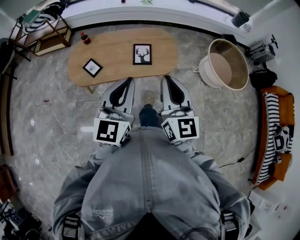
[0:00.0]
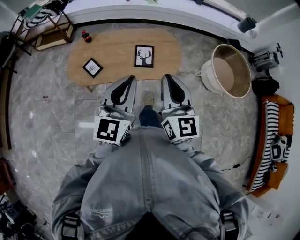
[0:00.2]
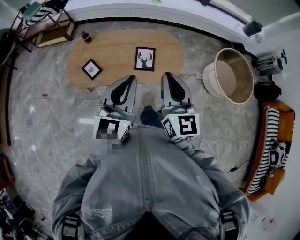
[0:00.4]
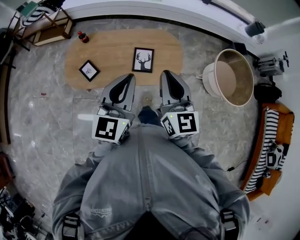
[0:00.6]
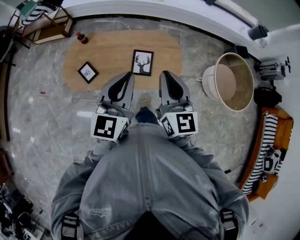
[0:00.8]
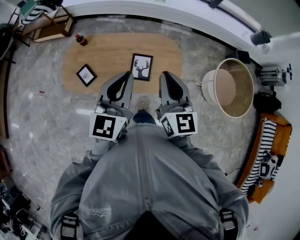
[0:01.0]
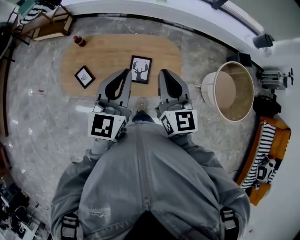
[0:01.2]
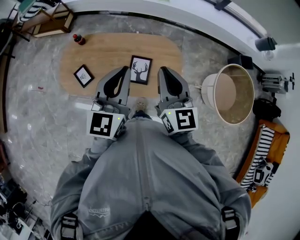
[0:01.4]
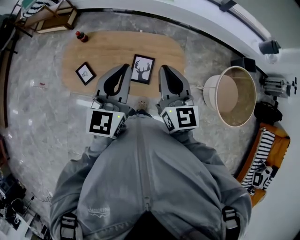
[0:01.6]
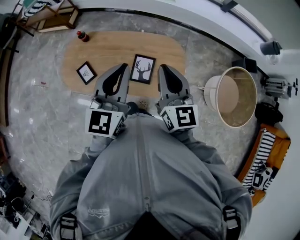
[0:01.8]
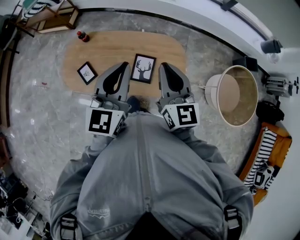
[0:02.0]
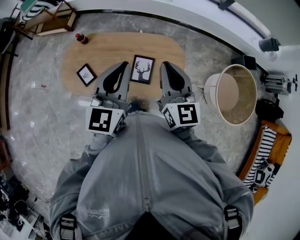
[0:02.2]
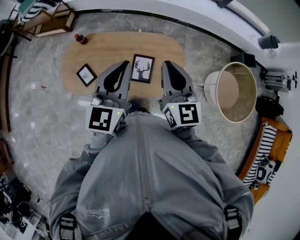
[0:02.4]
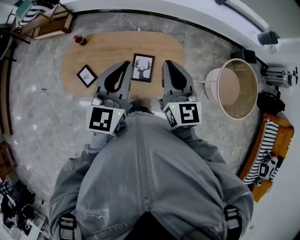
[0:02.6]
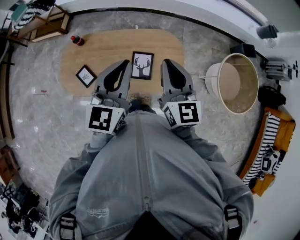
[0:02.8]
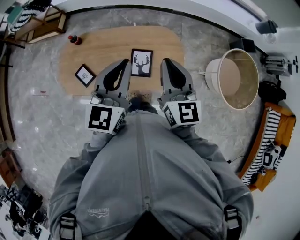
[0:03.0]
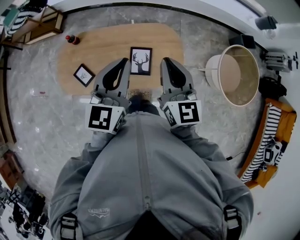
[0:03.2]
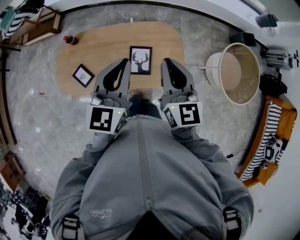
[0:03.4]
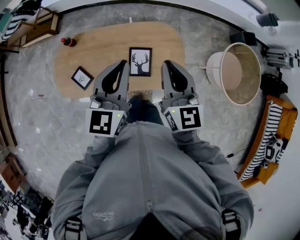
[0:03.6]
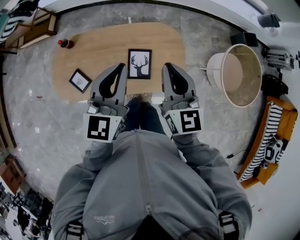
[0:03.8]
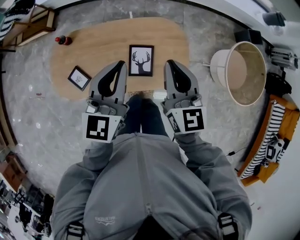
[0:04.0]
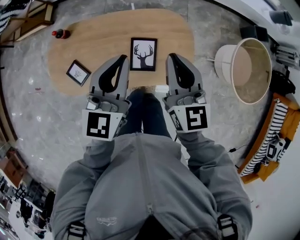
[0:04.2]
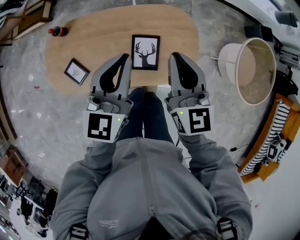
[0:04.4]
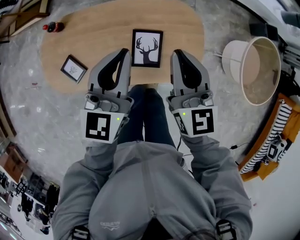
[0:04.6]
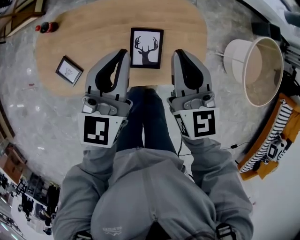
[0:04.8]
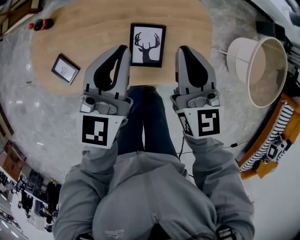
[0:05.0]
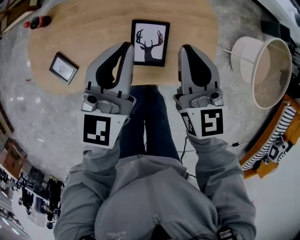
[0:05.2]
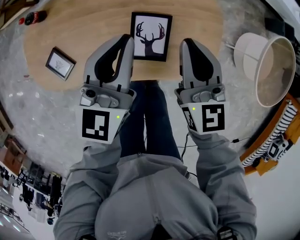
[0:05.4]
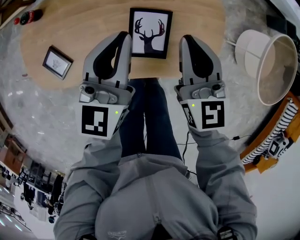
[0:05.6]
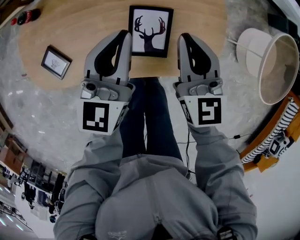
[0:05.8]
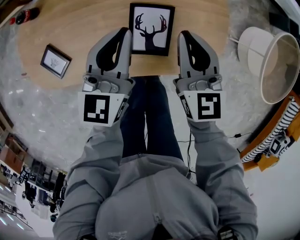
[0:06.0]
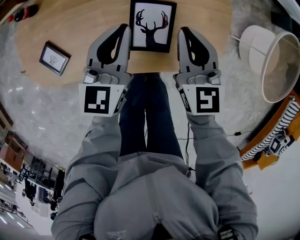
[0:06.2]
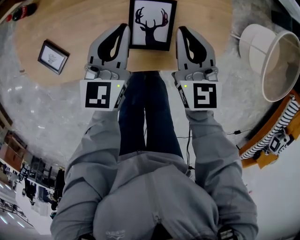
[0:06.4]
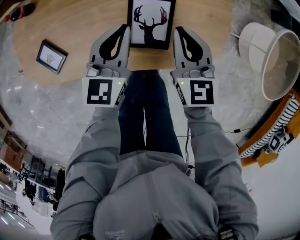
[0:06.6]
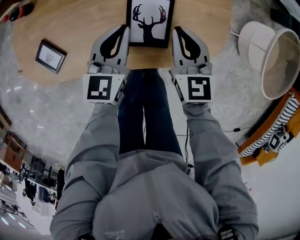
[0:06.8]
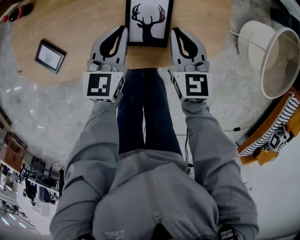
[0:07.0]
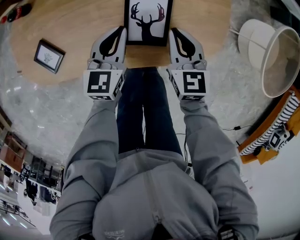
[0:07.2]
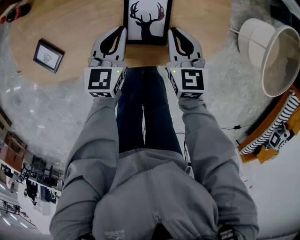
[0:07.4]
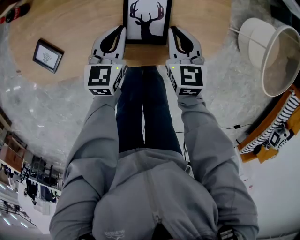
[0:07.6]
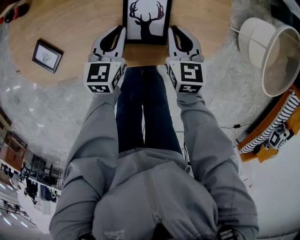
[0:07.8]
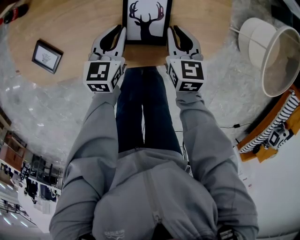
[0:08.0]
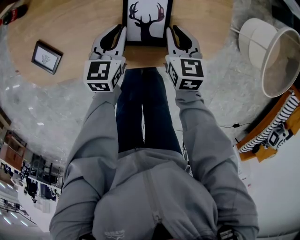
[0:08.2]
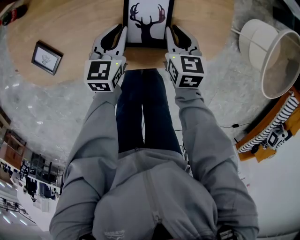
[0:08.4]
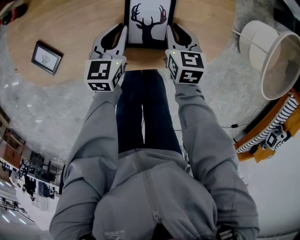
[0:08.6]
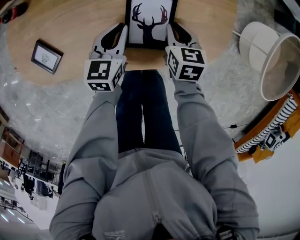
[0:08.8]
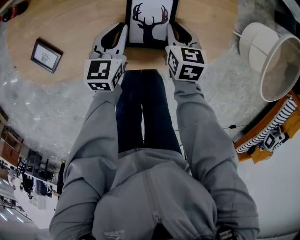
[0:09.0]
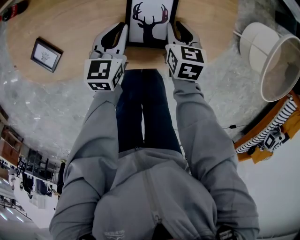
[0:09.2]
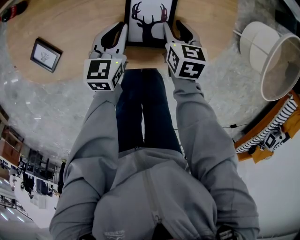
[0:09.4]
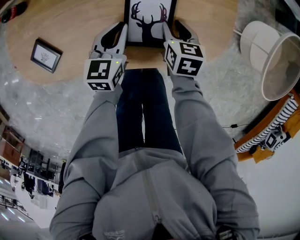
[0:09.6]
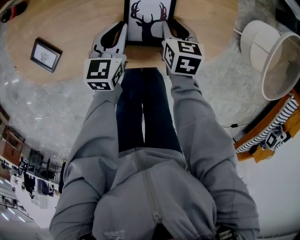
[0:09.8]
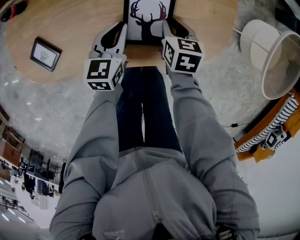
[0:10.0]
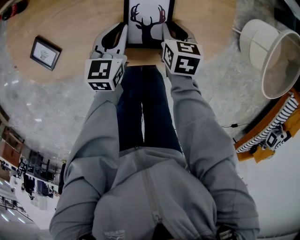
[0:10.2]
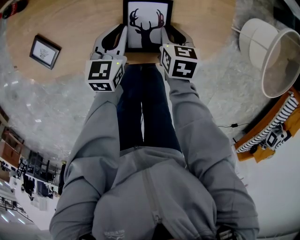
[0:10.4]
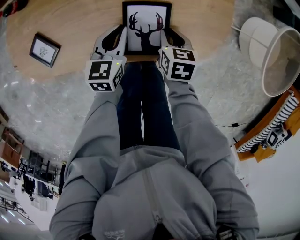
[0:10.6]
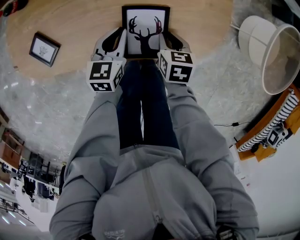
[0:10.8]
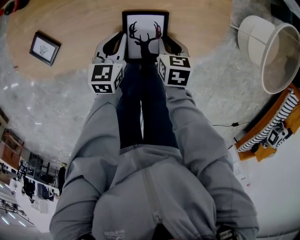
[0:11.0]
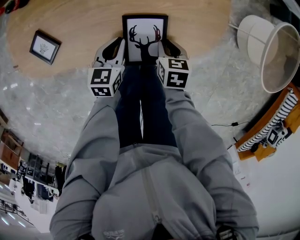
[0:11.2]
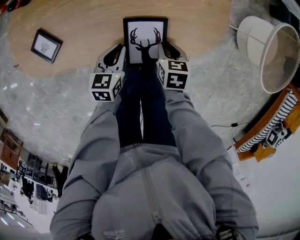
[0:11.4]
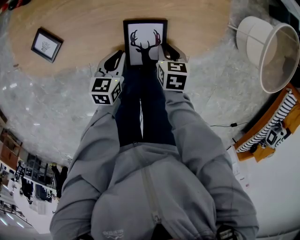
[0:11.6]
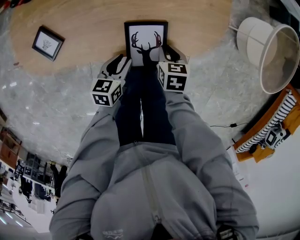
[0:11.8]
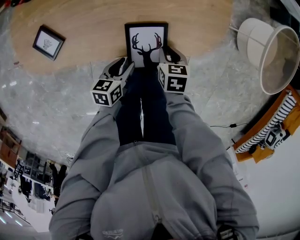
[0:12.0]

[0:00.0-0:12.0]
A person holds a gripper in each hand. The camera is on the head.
0:00.0 to 0:01.6: The pair of grippers is taken forward, about 40 cm.
0:01.6 to 0:03.0: The grippers make only small movements.
0:03.0 to 0:04.4: Both grippers travel together downward and forward, about 20 cm.
0:04.4 to 0:06.0: Both grippers move downward, some 25 cm.
0:06.0 to 0:07.6: The grippers both shift downward by approximately 15 cm.
0:07.6 to 0:09.0: The right gripper goes about 10 cm downward.
0:09.0 to 0:10.4: The right gripper changes place by approximately 5 cm.
0:10.4 to 0:12.0: The right gripper travels backward by roughly 10 cm; the left gripper shifts approximately 20 cm backward, swivels some 30 degrees, and opens up.

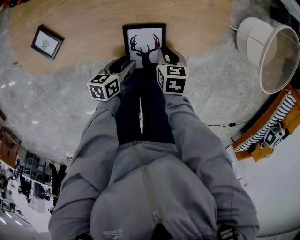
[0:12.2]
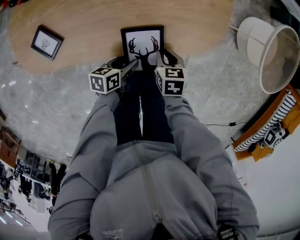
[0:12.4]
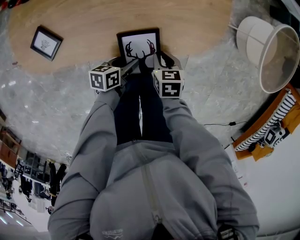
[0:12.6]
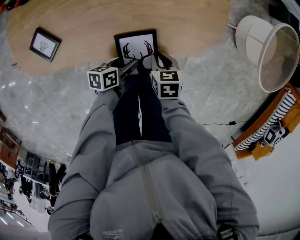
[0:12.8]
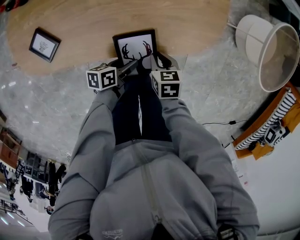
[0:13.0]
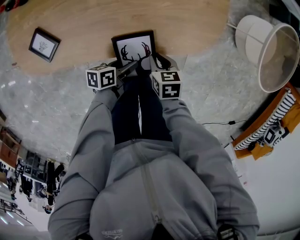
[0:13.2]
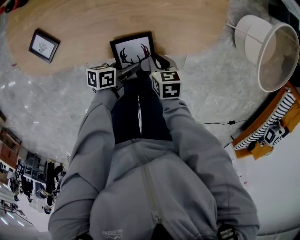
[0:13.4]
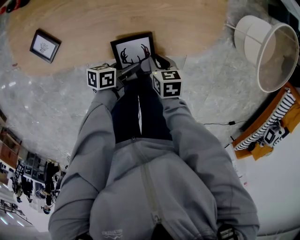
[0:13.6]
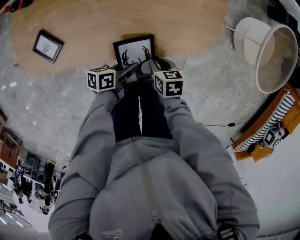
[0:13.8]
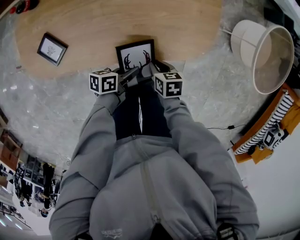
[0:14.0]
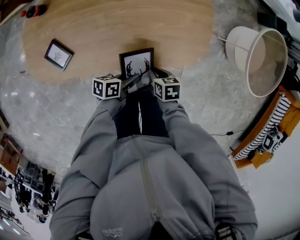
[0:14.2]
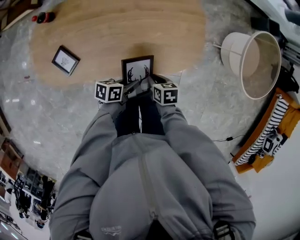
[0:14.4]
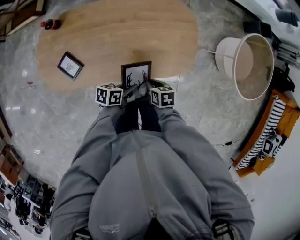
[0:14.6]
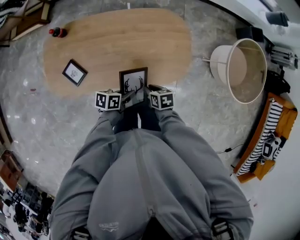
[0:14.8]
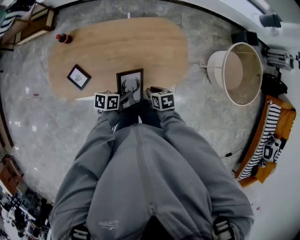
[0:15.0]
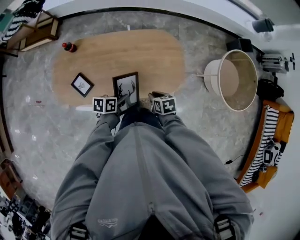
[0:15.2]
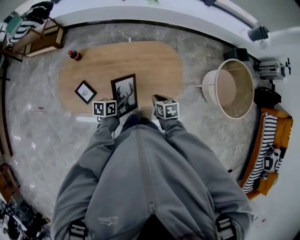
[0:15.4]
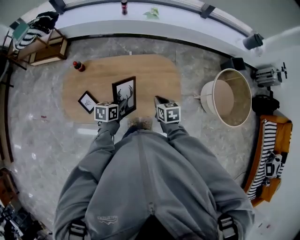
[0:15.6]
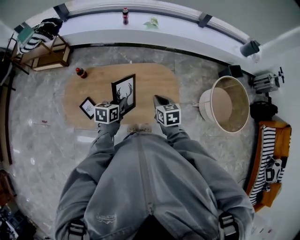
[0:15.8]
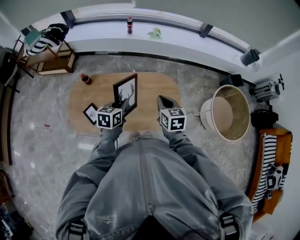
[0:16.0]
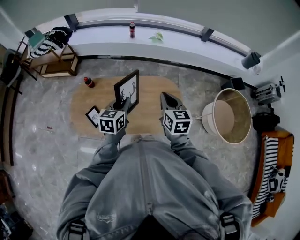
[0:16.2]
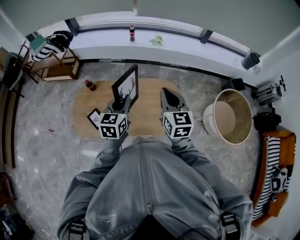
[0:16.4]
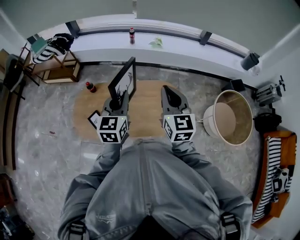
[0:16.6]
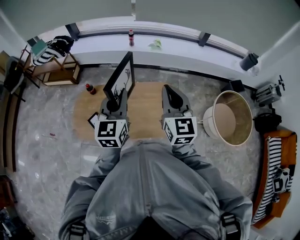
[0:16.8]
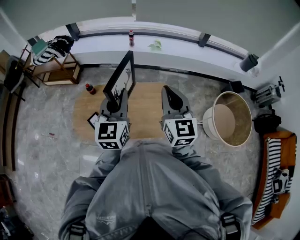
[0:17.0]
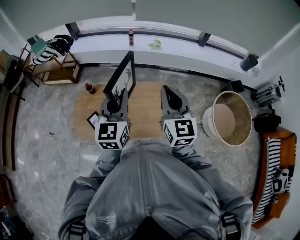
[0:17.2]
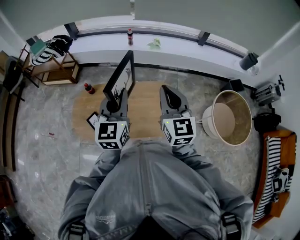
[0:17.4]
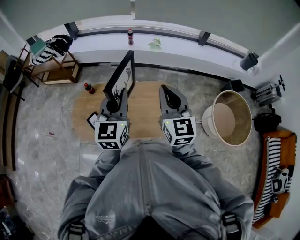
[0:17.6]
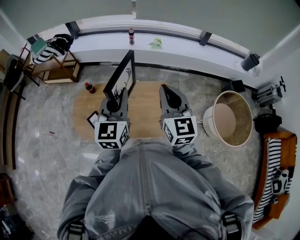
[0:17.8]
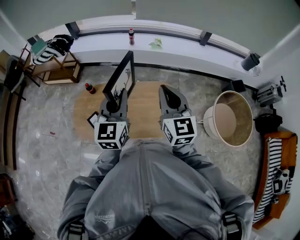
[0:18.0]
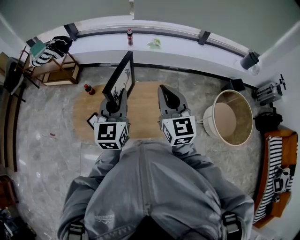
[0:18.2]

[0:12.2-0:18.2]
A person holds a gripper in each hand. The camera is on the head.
0:12.2 to 0:13.8: The left gripper ends up about 5 cm from where it was, changes its angle by some 20 degrees, and closes.
0:13.8 to 0:15.2: The two grippers go approximately 30 cm upward.
0:15.2 to 0:16.6: Both grippers travel together upward, about 40 cm. The left gripper changes its angle by about 70 degrees; the right gripper points its fingers approximately 50 degrees further upward.
0:16.6 to 0:18.2: The left gripper heads upward, covering roughly 5 cm.

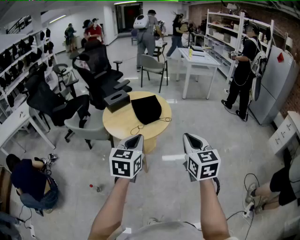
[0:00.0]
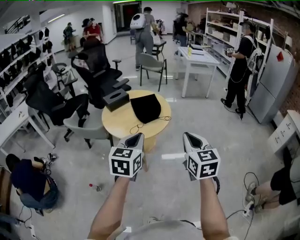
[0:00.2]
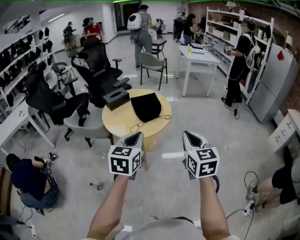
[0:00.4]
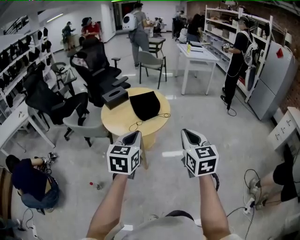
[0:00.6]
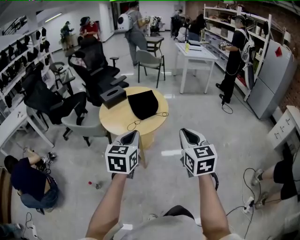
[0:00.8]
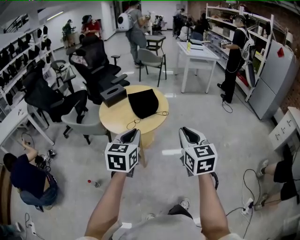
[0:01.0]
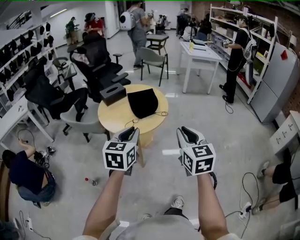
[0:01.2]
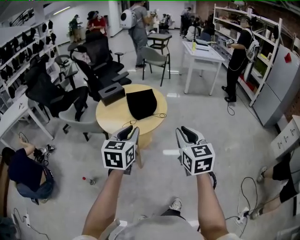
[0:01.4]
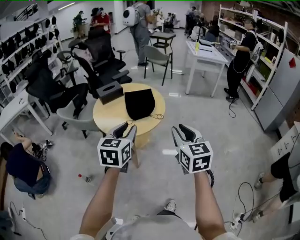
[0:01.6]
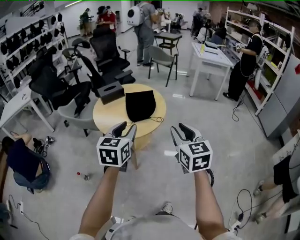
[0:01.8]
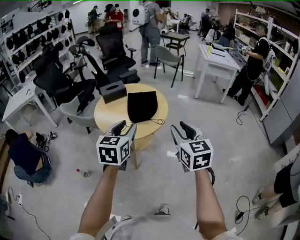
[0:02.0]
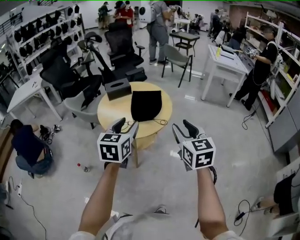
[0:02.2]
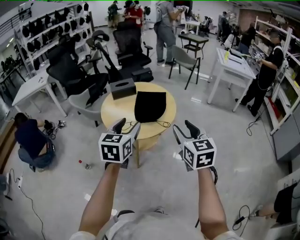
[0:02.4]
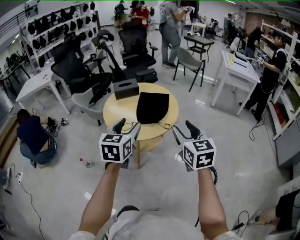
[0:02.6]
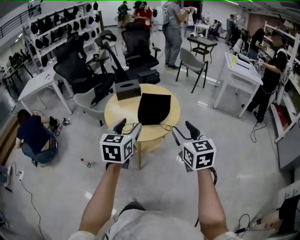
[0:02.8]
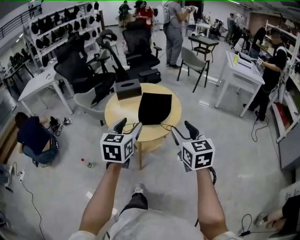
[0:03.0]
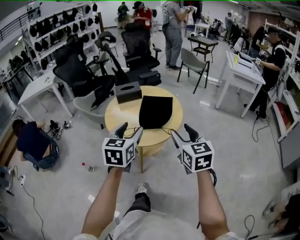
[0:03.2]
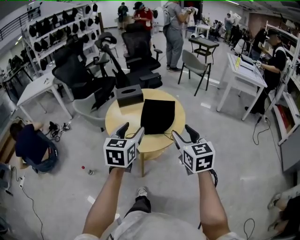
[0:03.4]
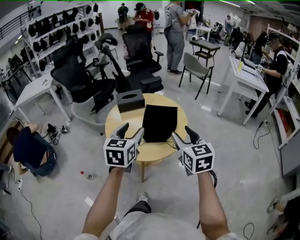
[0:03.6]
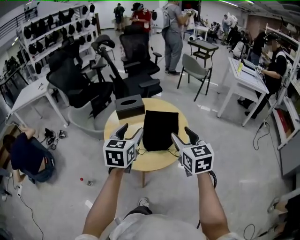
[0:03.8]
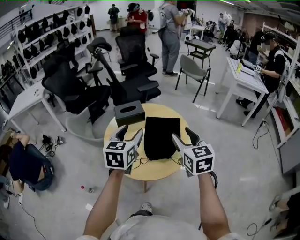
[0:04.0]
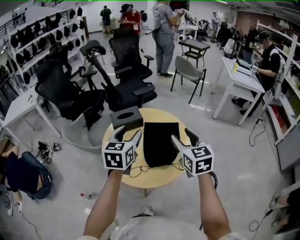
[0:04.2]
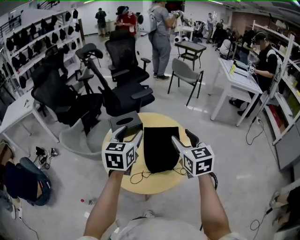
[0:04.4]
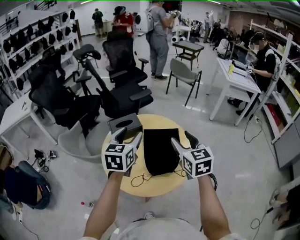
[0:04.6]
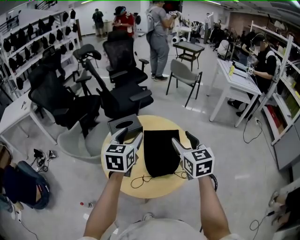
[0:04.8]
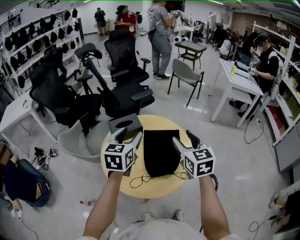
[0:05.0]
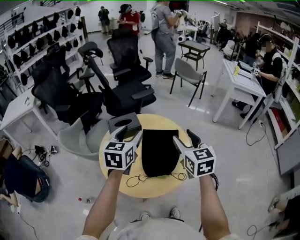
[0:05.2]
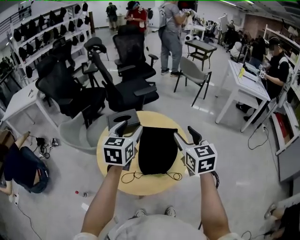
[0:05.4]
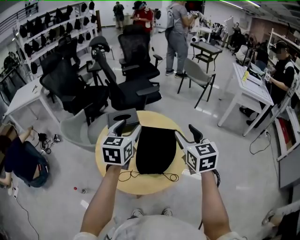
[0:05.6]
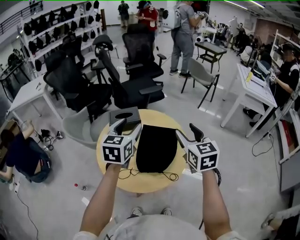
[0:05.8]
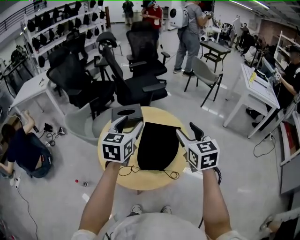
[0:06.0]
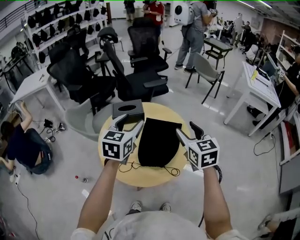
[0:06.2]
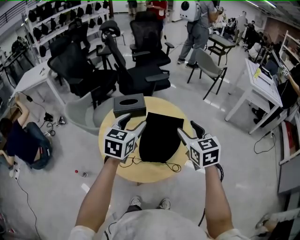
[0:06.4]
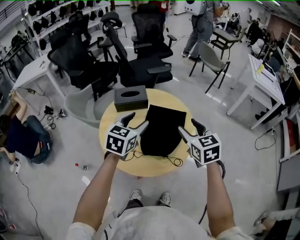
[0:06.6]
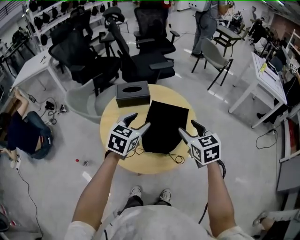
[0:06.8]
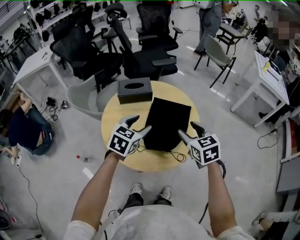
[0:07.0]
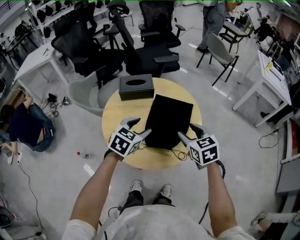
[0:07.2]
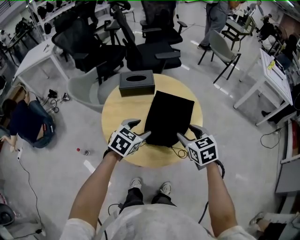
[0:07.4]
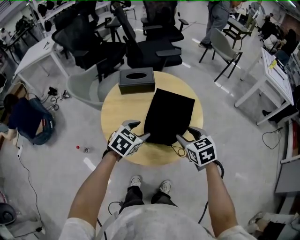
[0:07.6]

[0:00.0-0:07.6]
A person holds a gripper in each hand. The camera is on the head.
0:00.0 to 0:01.6: The grippers both shift forward and to the right by some 10 cm. The right gripper opens its fingers, while the left gripper opens its fingers.
0:01.6 to 0:03.0: The left gripper shifts about 10 cm forward, and opens up. Meanwhile the right gripper goes approximately 15 cm forward and to the right, rotates about 20 degrees, and opens.
0:03.0 to 0:04.6: Both grippers move forward, approximately 30 cm.
0:04.6 to 0:06.0: The right gripper heads to the right, covering about 5 cm.
0:06.0 to 0:07.6: The grippers both shift downward by roughly 20 cm. The right gripper changes its angle by roughly 30 degrees. Meanwhile the left gripper turns by approximately 30 degrees.
